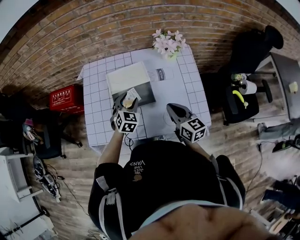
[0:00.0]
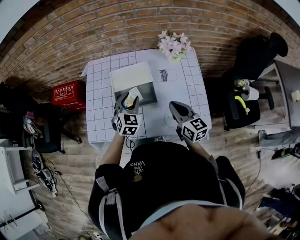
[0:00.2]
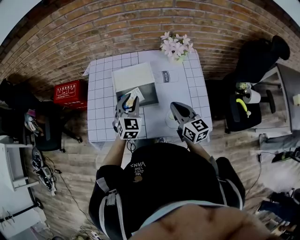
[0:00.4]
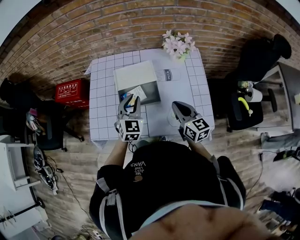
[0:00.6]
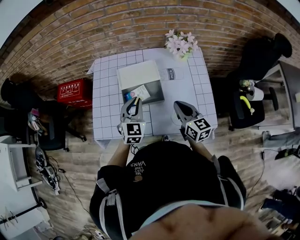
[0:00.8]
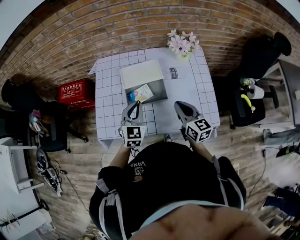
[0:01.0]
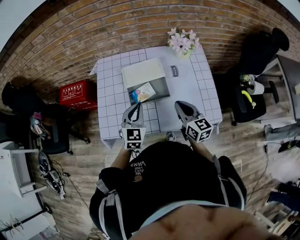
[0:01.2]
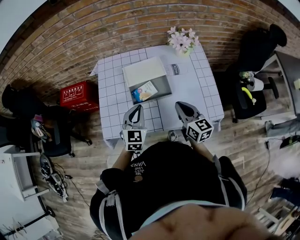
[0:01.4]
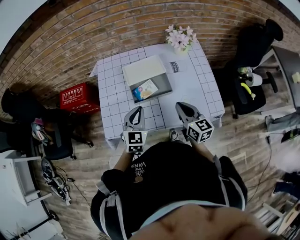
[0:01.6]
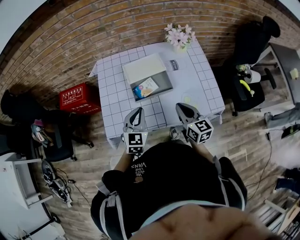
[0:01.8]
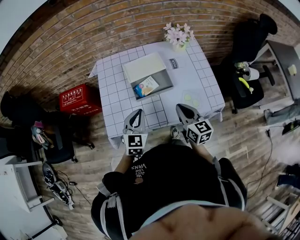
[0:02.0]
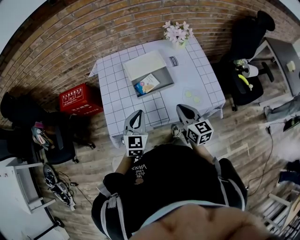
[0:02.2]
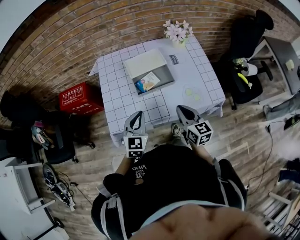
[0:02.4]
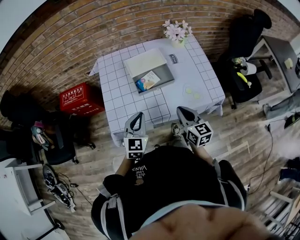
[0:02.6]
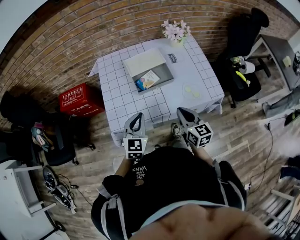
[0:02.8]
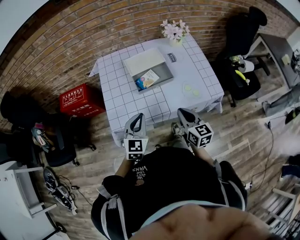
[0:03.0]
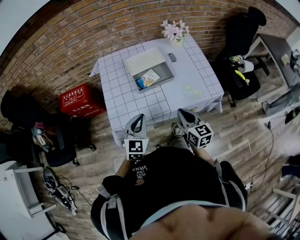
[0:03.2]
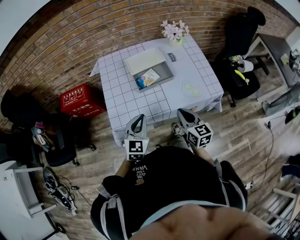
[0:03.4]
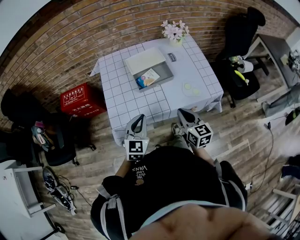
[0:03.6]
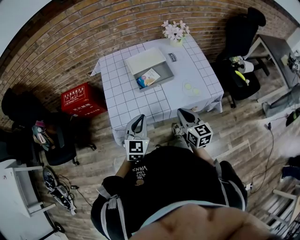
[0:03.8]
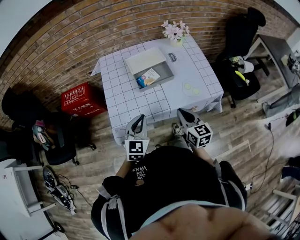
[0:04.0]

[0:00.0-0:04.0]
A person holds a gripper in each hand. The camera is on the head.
0:00.0 to 0:01.4: The left gripper moves backward, upward and to the left, roughly 15 cm, and closes its fingers. The right gripper moves to the left, some 5 cm.
0:01.4 to 0:02.6: Both grippers move backward and to the left, some 10 cm.
0:02.6 to 0:04.0: The two grippers go roughly 5 cm backward.

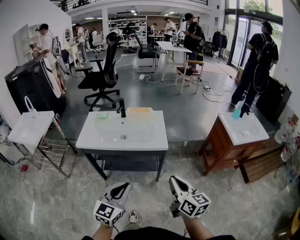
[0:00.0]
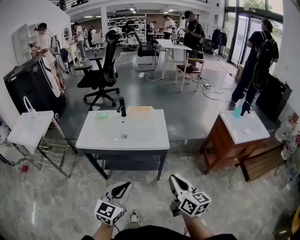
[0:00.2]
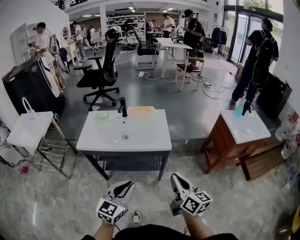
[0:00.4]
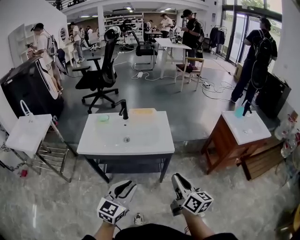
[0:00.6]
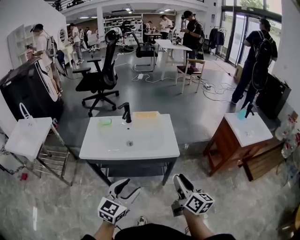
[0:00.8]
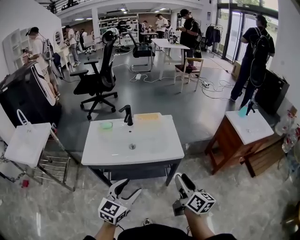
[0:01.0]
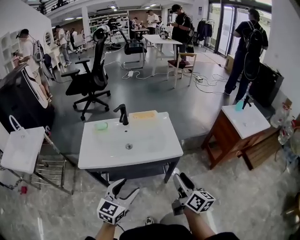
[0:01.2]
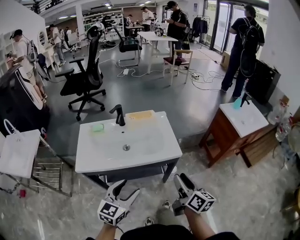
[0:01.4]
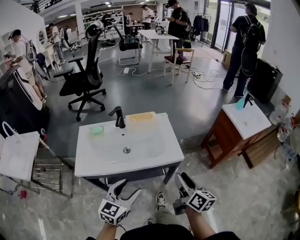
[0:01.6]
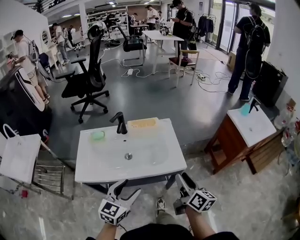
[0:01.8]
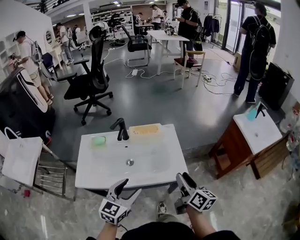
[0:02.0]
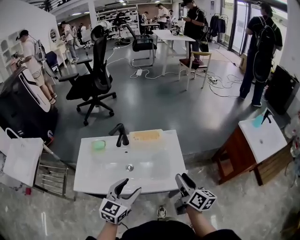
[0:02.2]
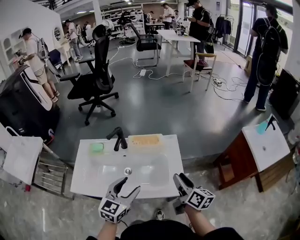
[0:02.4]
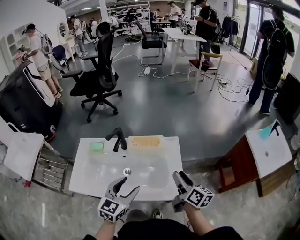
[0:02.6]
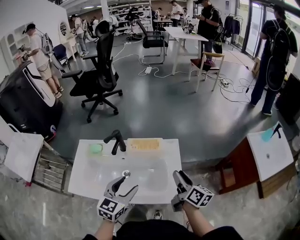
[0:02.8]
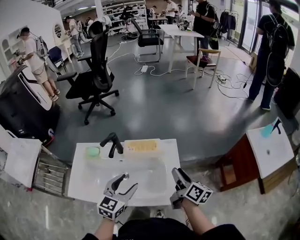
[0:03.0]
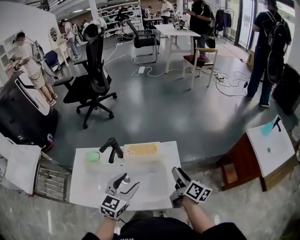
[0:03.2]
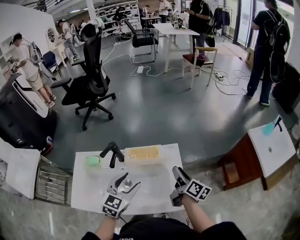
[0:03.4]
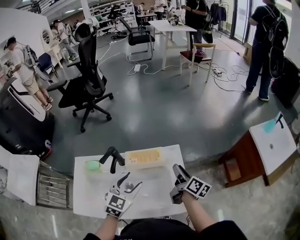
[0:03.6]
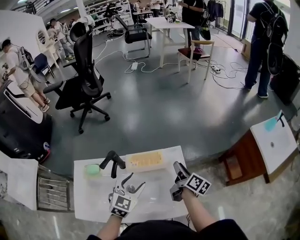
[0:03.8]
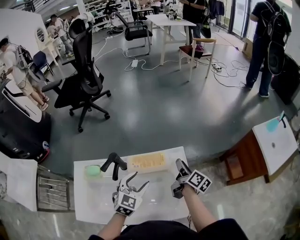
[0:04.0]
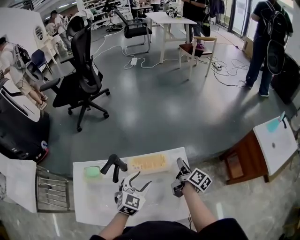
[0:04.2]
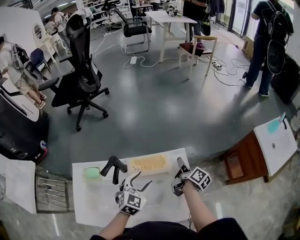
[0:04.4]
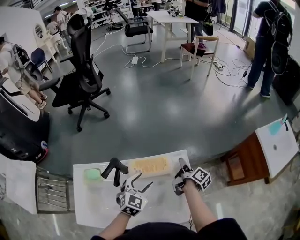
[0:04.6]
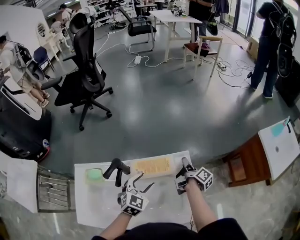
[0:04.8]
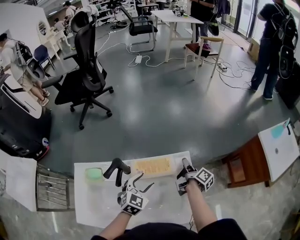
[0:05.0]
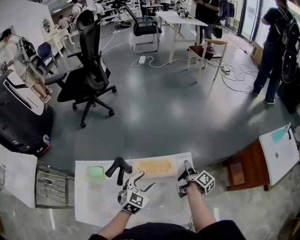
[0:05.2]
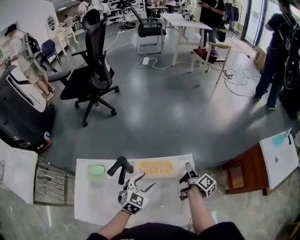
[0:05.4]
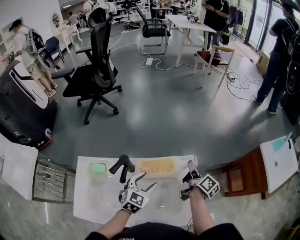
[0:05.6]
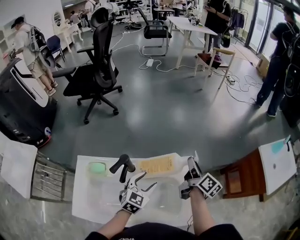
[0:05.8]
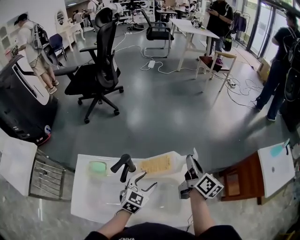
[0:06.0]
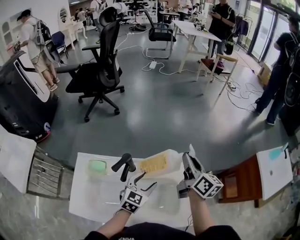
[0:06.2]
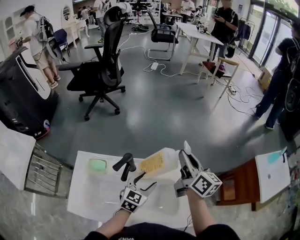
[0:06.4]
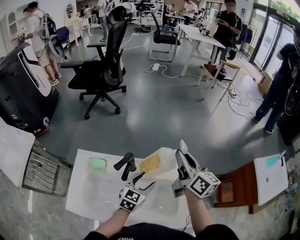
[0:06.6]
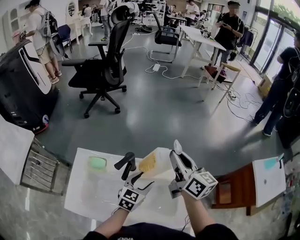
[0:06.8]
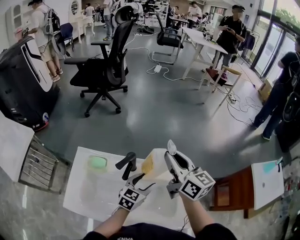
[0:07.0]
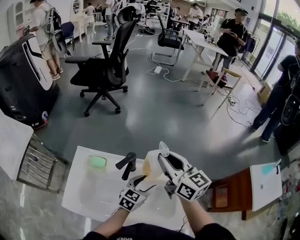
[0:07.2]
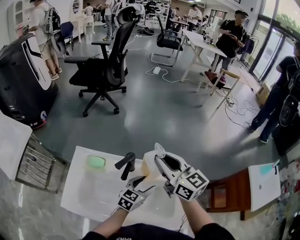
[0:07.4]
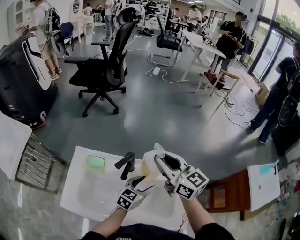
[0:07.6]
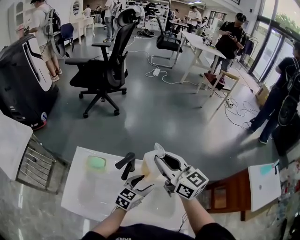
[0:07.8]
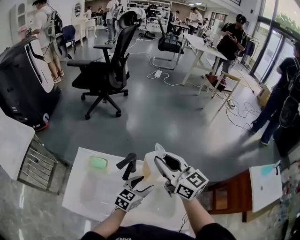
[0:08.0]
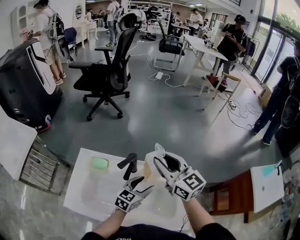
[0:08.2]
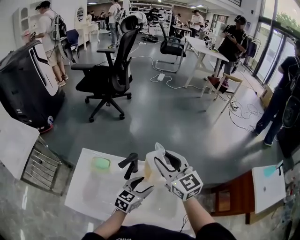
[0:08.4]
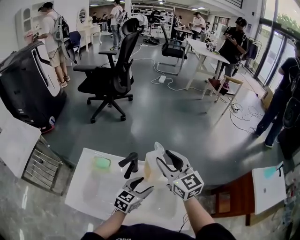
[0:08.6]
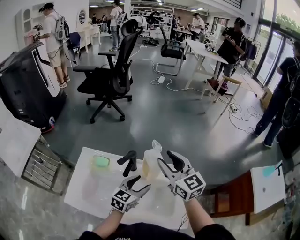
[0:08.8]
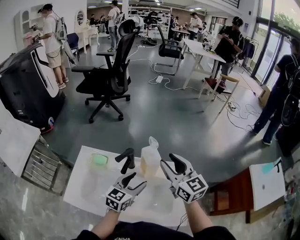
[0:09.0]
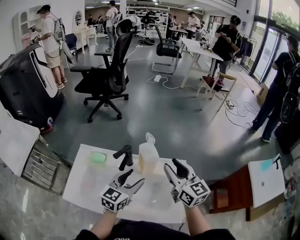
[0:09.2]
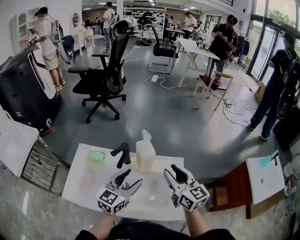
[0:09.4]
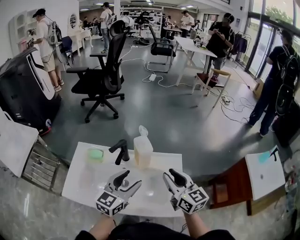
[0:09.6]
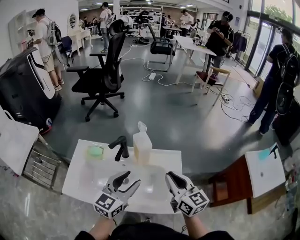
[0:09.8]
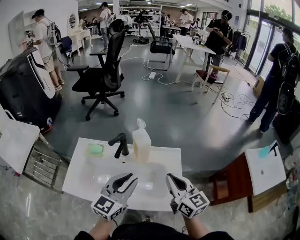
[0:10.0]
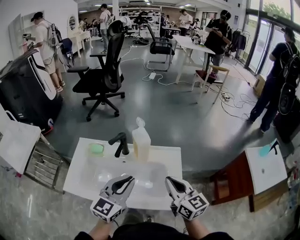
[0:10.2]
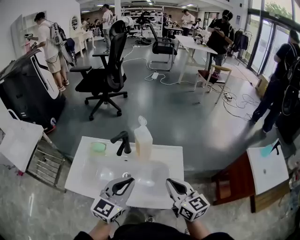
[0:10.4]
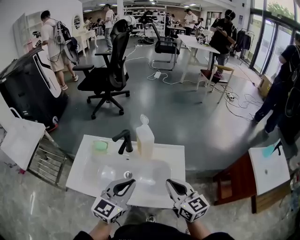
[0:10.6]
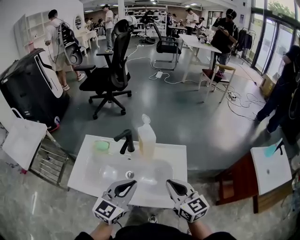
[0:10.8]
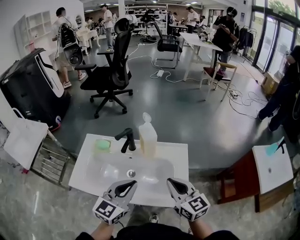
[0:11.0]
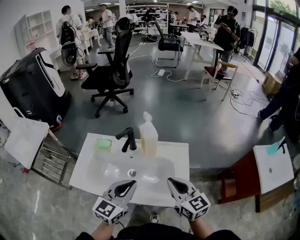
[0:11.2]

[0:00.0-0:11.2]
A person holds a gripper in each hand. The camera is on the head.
0:00.0 to 0:01.6: Both grippers move forward and to the left, roughly 20 cm. The left gripper opens; the right gripper swivels approximately 30 degrees, and opens up.
0:01.6 to 0:03.2: The two grippers go about 30 cm forward.
0:03.2 to 0:04.8: The two grippers go roughly 20 cm forward and downward. The right gripper rotates about 40 degrees.
0:04.8 to 0:06.4: The right gripper moves upward and to the left, roughly 25 cm, and rolls counterclockwise, seen from behind, by some 50 degrees.
0:06.4 to 0:08.0: The right gripper travels to the left by approximately 15 cm, and rotates some 40 degrees.
0:08.0 to 0:09.6: The left gripper shifts approximately 15 cm upward and backward; the right gripper travels backward, to the right and downward by some 20 cm.
0:09.6 to 0:11.2: Both grippers travel together backward, roughly 10 cm. The right gripper closes its fingers, while the left gripper closes its fingers.

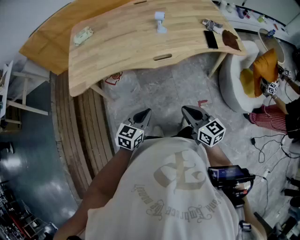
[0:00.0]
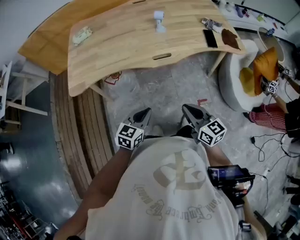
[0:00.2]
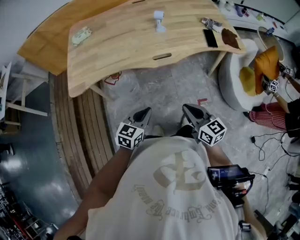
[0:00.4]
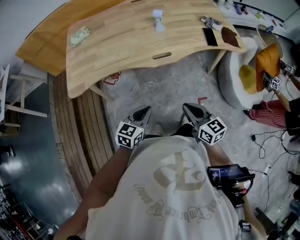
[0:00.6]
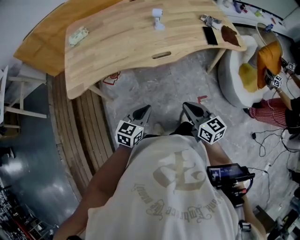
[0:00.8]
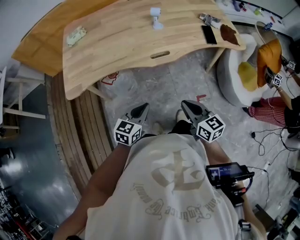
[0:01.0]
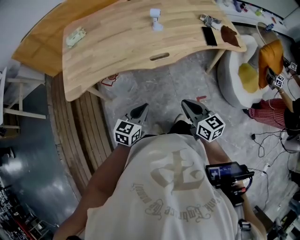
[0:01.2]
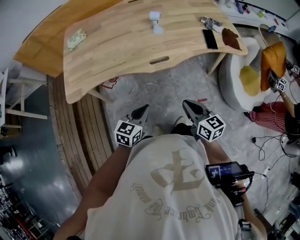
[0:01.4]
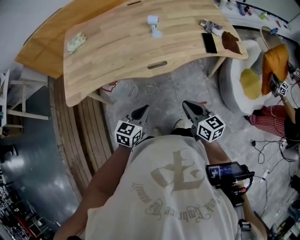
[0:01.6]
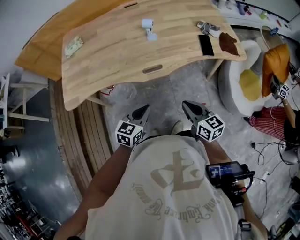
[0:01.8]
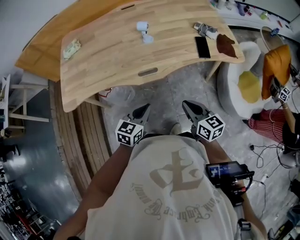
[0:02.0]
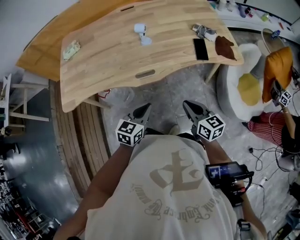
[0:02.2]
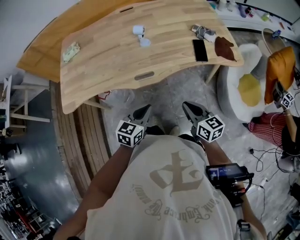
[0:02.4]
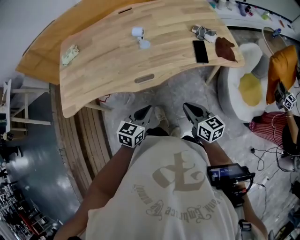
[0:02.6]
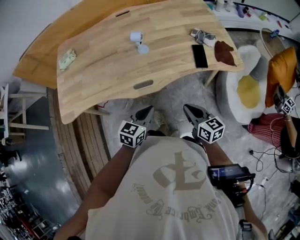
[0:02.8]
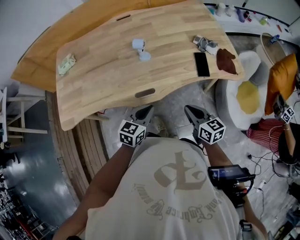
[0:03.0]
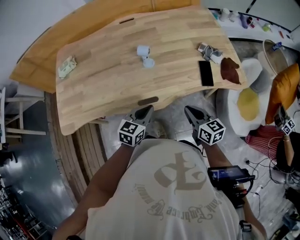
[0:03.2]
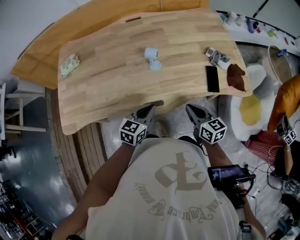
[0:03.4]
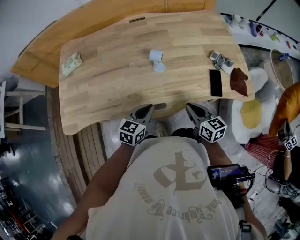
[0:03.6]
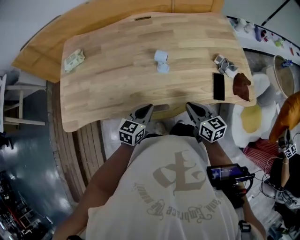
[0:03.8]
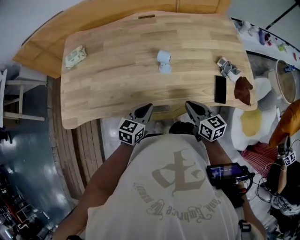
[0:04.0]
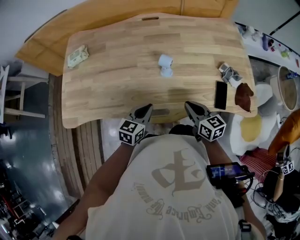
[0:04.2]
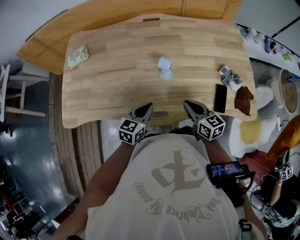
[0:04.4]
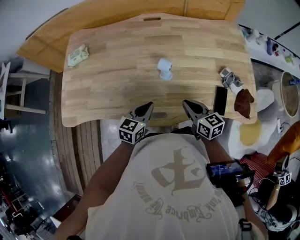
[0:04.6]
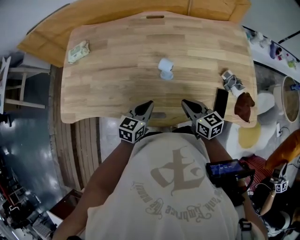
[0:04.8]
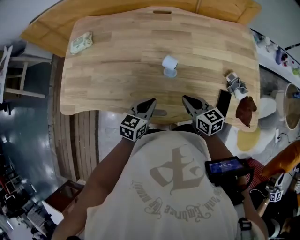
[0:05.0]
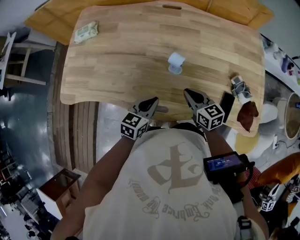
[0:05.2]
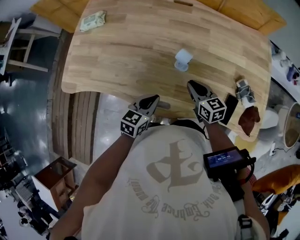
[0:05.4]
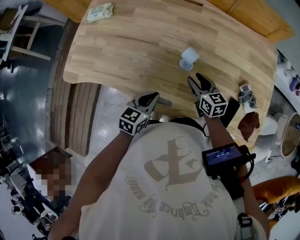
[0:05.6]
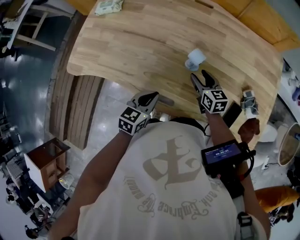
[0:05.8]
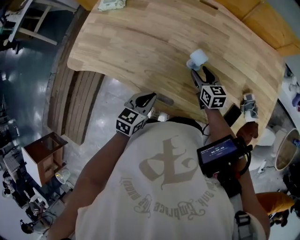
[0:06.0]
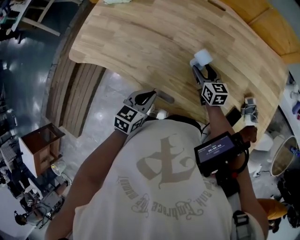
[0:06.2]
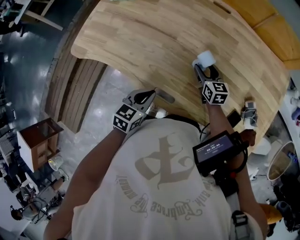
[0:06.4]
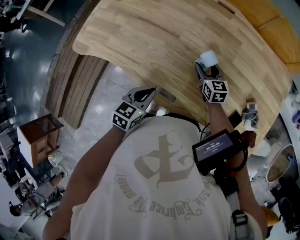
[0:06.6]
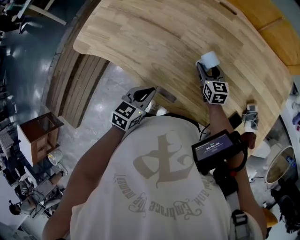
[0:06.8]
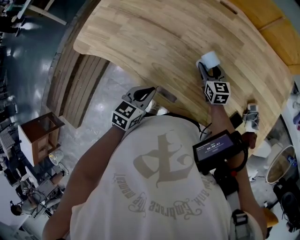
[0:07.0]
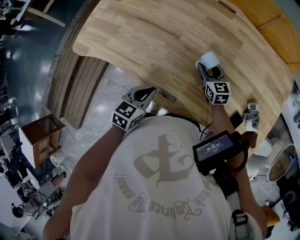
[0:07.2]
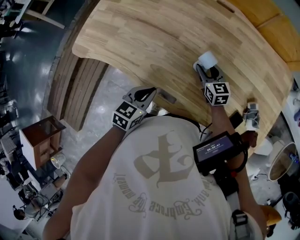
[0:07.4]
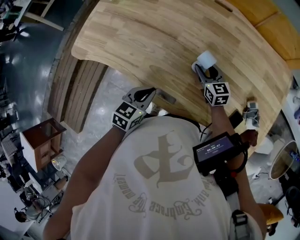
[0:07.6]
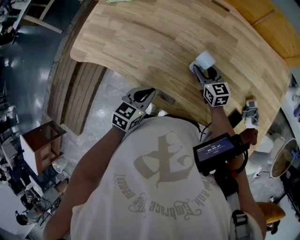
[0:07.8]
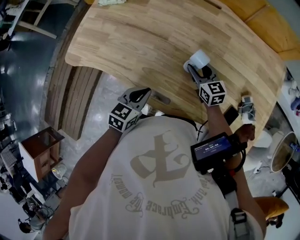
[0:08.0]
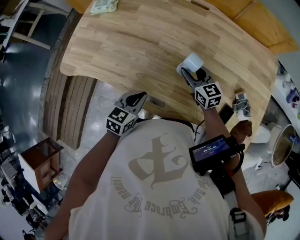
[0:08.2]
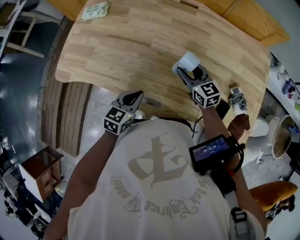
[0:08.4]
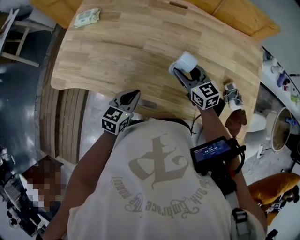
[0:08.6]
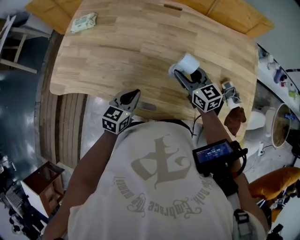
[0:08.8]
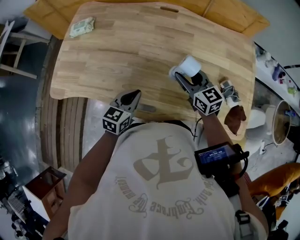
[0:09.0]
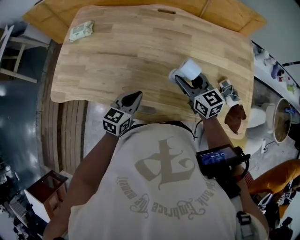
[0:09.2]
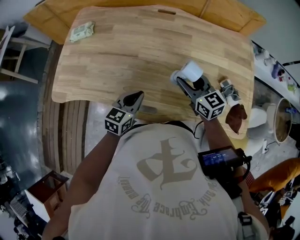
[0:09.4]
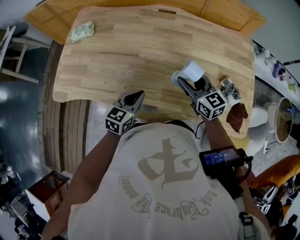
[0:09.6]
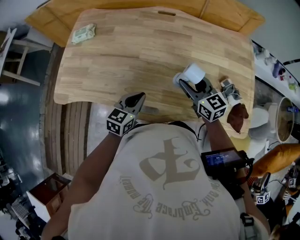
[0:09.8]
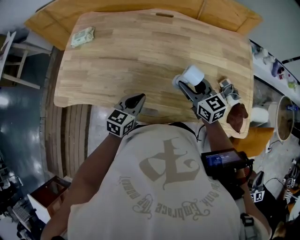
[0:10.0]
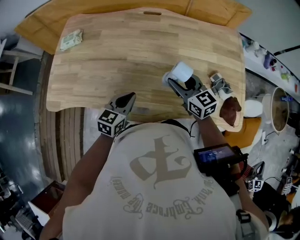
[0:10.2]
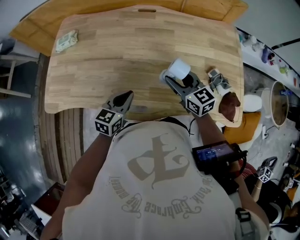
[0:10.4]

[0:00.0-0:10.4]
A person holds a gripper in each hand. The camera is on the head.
0:00.0 to 0:01.4: The two grippers go some 5 cm forward.
0:01.4 to 0:03.0: Both grippers travel together forward and to the right, about 20 cm.
0:03.0 to 0:04.4: The right gripper is displaced forward by about 20 cm. The left gripper shifts approximately 15 cm forward and to the left.
0:04.4 to 0:06.0: The right gripper moves forward and downward, roughly 20 cm, and opens up. Meanwhile the left gripper rotates roughly 20 degrees.
0:06.0 to 0:07.4: The grippers stay close to where they were, moving slightly.
0:07.4 to 0:09.0: The right gripper travels upward by about 15 cm. Meanwhile the left gripper ends up roughly 5 cm from where it was.
0:09.0 to 0:10.4: The grippers stay close to where they were, moving slightly.
